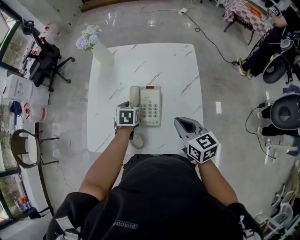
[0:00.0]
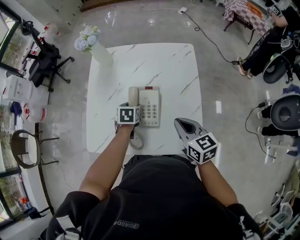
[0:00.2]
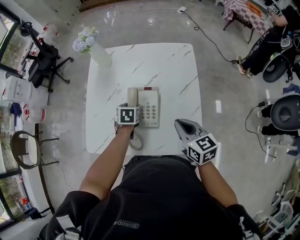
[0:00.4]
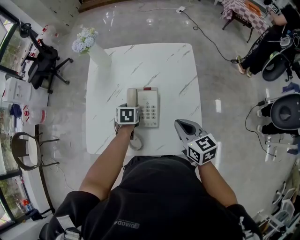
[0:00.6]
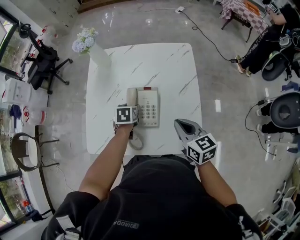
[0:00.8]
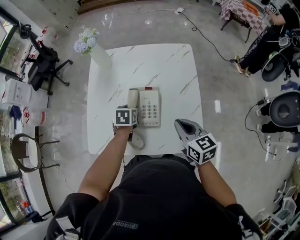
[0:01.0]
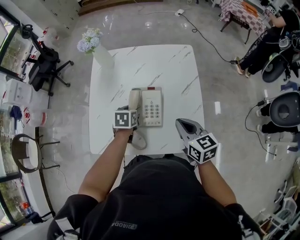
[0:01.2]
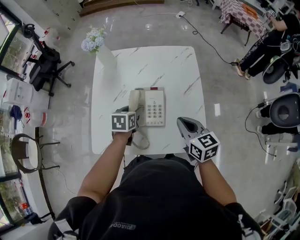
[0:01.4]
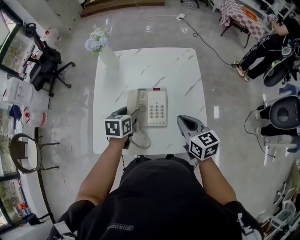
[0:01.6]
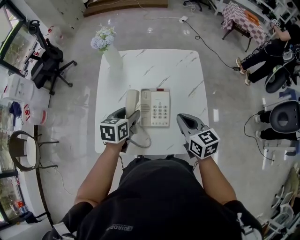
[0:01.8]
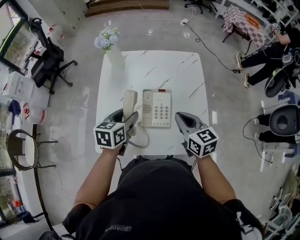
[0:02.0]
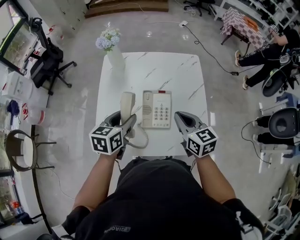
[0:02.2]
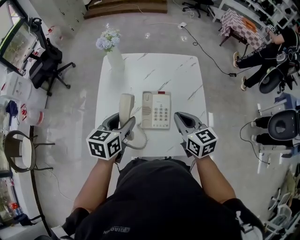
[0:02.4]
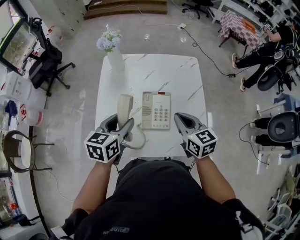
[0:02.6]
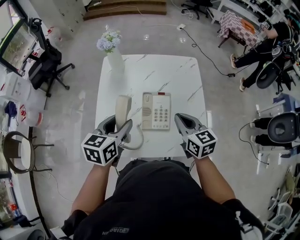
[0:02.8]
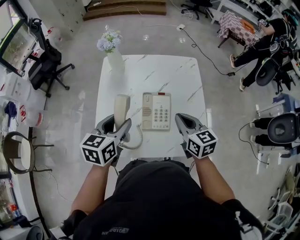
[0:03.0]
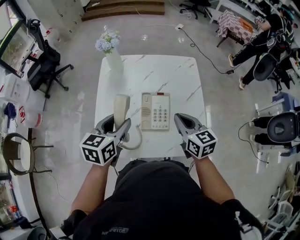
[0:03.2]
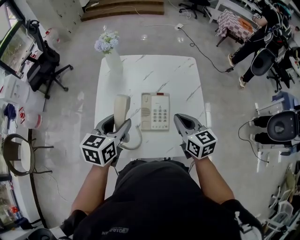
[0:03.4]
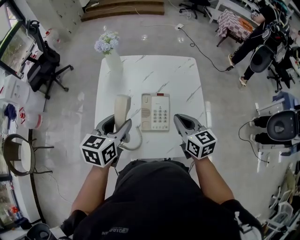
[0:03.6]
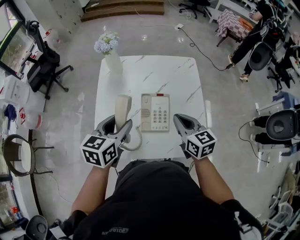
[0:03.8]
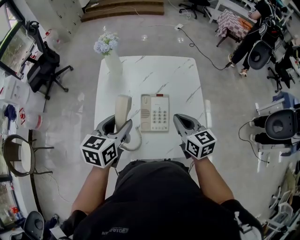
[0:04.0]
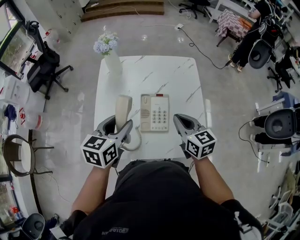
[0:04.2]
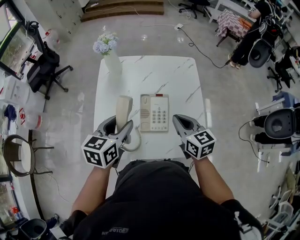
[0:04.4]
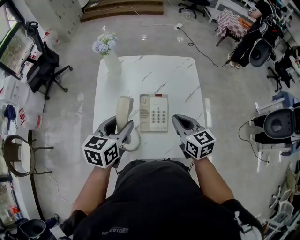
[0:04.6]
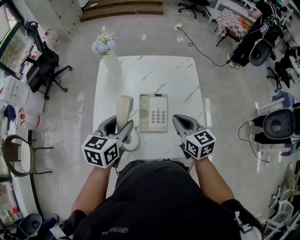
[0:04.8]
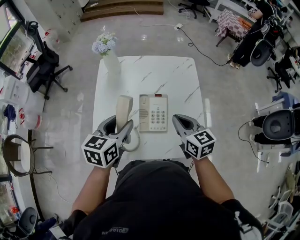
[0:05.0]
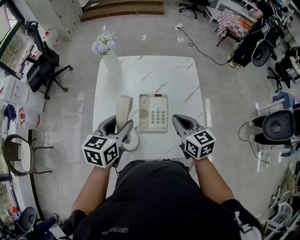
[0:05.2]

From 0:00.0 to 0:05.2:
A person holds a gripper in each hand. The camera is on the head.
From 0:00.0 to 0:01.8: The right gripper ends up some 5 cm from where it was, while the left gripper is displaced upward and to the left by about 15 cm, and turns by some 20 degrees.
From 0:01.8 to 0:03.4: The left gripper travels upward by about 10 cm.
From 0:03.4 to 0:05.2: The grippers move only a little.

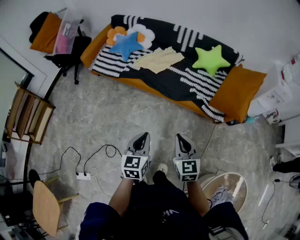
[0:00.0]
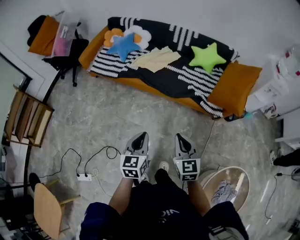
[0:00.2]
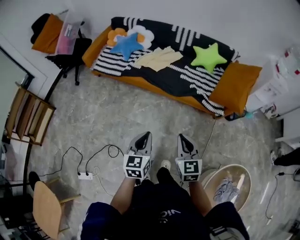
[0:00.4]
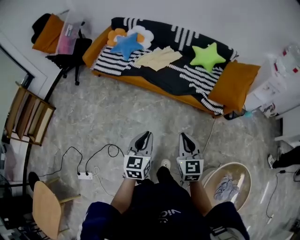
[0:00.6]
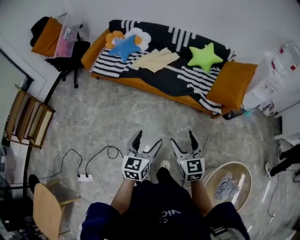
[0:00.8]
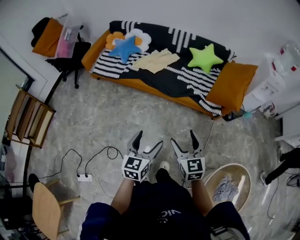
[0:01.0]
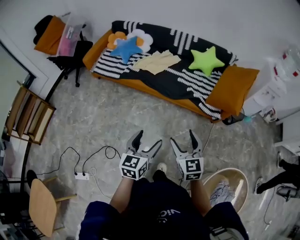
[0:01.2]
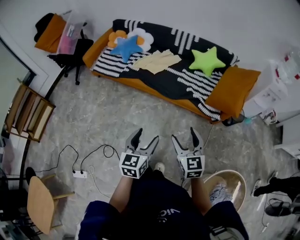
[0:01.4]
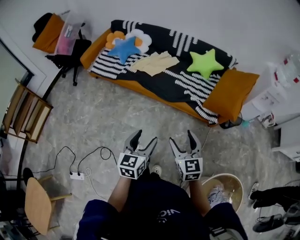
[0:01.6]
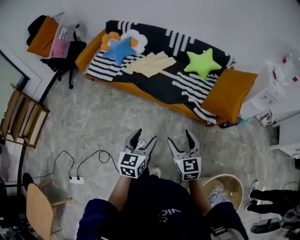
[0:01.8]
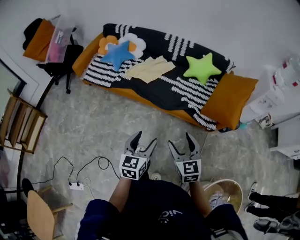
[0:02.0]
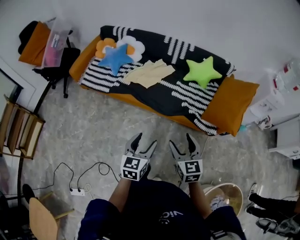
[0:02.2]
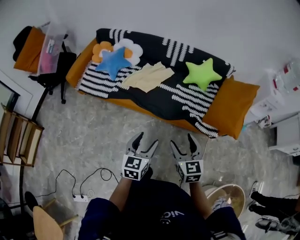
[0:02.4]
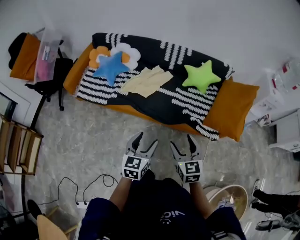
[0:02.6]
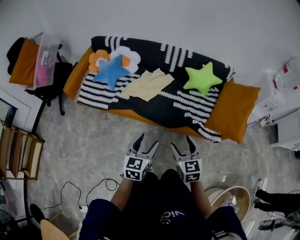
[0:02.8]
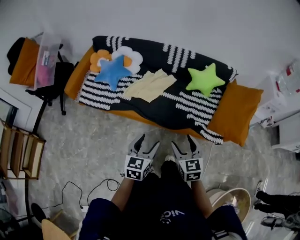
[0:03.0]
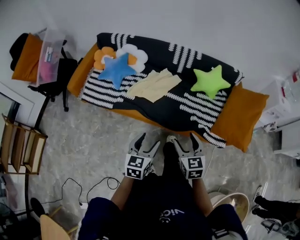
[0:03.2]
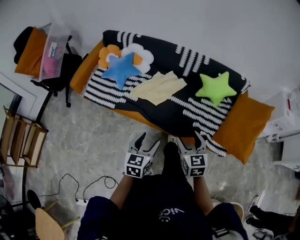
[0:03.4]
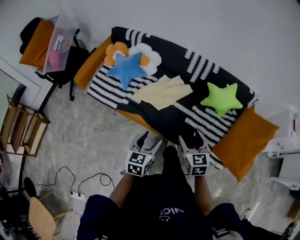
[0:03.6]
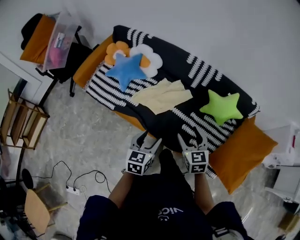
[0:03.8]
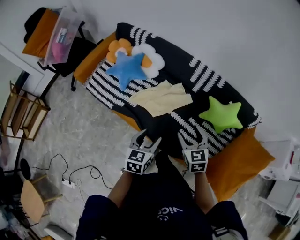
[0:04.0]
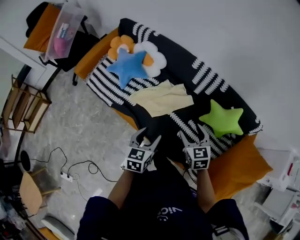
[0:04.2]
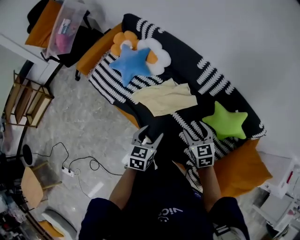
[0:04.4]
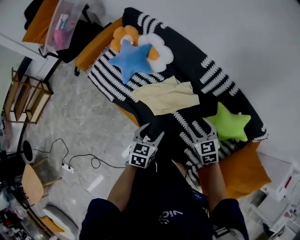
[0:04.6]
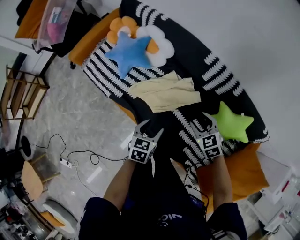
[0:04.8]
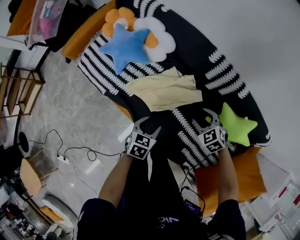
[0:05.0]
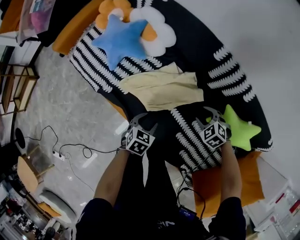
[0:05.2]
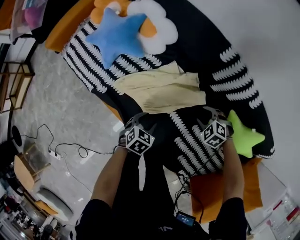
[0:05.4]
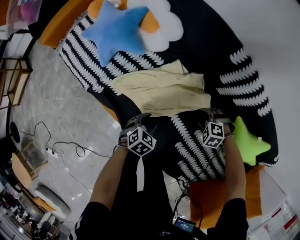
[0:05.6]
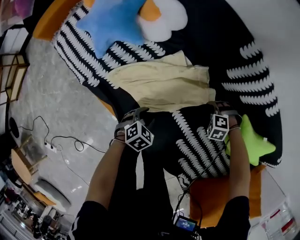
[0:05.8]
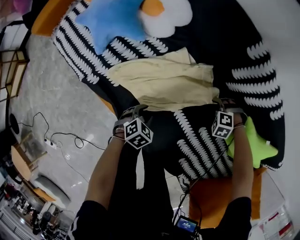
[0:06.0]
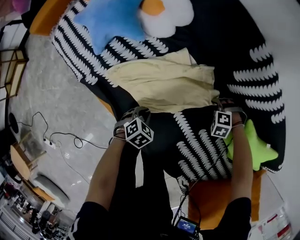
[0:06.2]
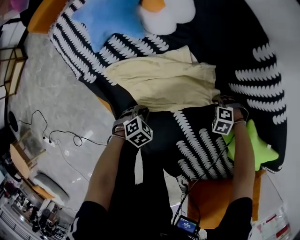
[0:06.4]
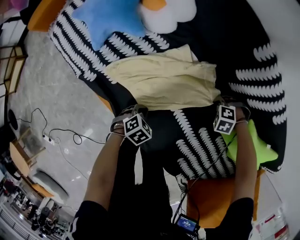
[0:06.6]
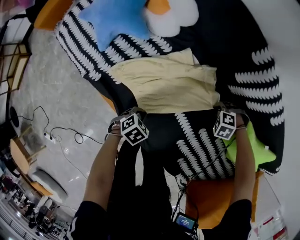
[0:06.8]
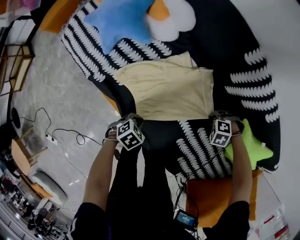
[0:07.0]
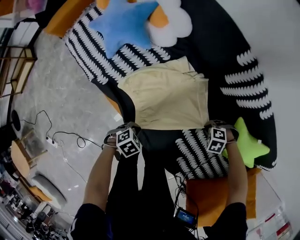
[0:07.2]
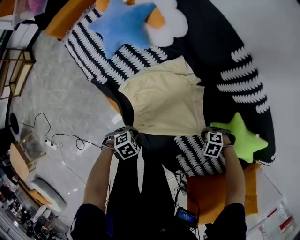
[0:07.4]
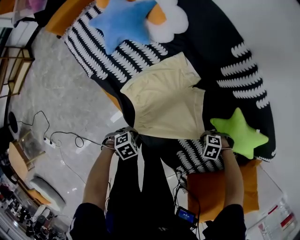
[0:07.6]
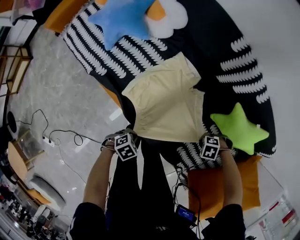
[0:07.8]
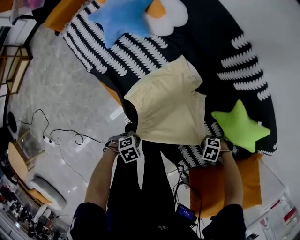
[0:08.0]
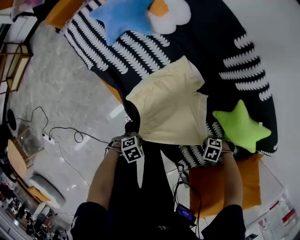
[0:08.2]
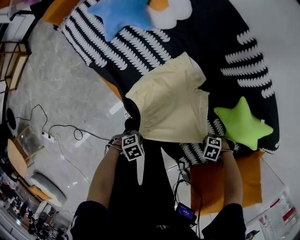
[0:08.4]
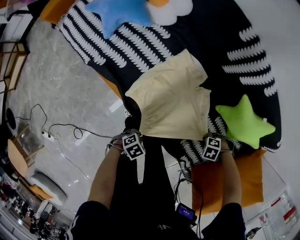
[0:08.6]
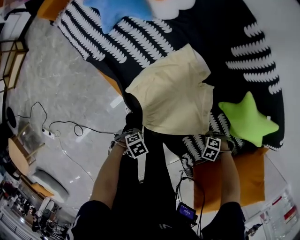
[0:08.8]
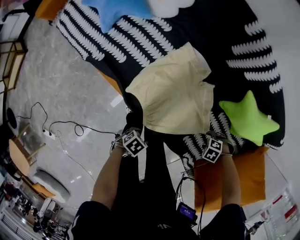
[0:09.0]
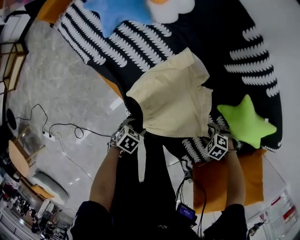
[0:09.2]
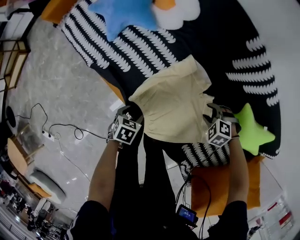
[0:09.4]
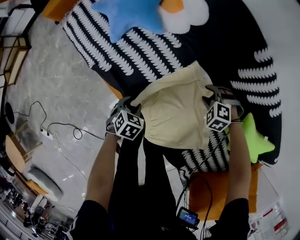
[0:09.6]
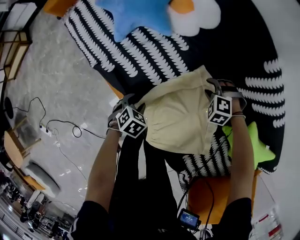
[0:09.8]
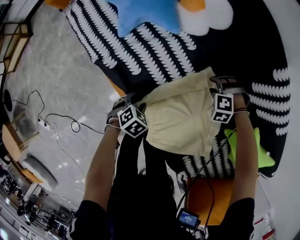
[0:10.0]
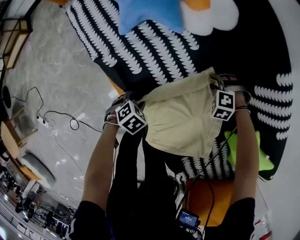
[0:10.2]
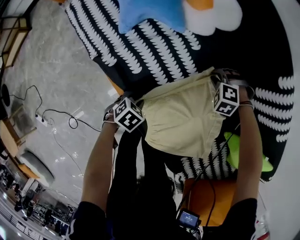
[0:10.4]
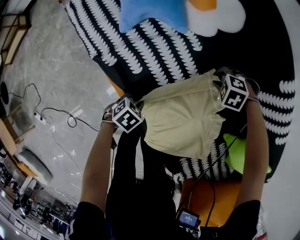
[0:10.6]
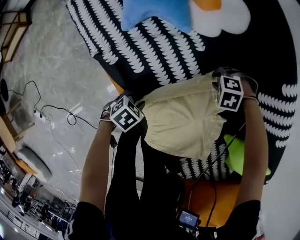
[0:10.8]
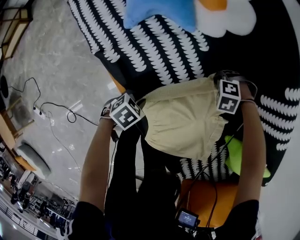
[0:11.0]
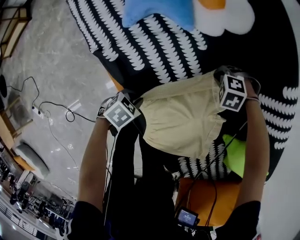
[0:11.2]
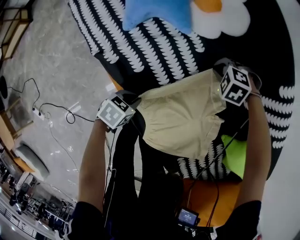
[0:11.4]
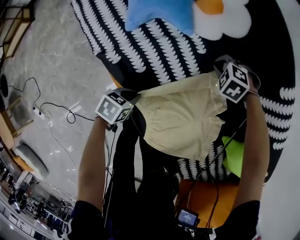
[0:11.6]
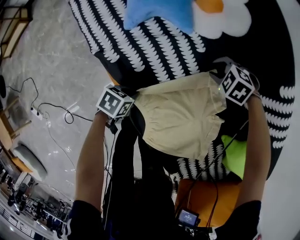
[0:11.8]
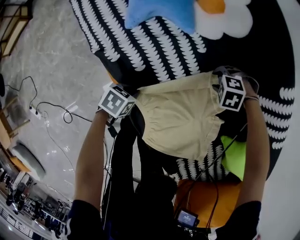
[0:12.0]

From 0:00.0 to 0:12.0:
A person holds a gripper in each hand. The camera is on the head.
From 0:00.0 to 0:01.6: The right gripper opens up. The left gripper moves approximately 5 cm, and opens its fingers.
From 0:01.6 to 0:03.0: The grippers both shift forward by some 25 cm.
From 0:03.0 to 0:04.4: The left gripper moves approximately 30 cm, and swivels some 30 degrees. The right gripper shifts by roughly 40 cm, and rotates about 30 degrees.
From 0:04.4 to 0:06.0: Both grippers move downward, approximately 40 cm. The right gripper angles its fingers downward, by about 50 degrees; the left gripper tips its fingers downward by some 30 degrees.
From 0:06.0 to 0:07.6: The left gripper ends up about 15 cm from where it was, and closes its fingers; the right gripper shifts by about 20 cm, swivels roughly 30 degrees, and closes its fingers.
From 0:07.6 to 0:09.0: The two grippers go some 10 cm forward. The right gripper opens up; the left gripper turns by roughly 20 degrees, and opens up.
From 0:09.0 to 0:10.4: The right gripper changes place by some 50 cm, rotates approximately 40 degrees, and closes its fingers, while the left gripper shifts by roughly 30 cm, turns by roughly 20 degrees, and closes its fingers.
From 0:10.4 to 0:12.0: The right gripper reaches about 5 cm downward, then returns, while the left gripper moves roughly 5 cm, and rotates about 20 degrees.

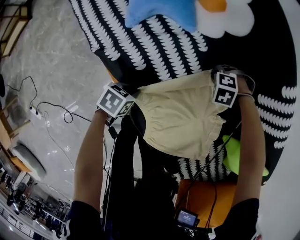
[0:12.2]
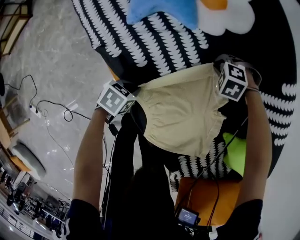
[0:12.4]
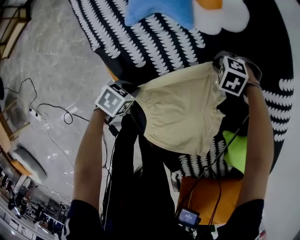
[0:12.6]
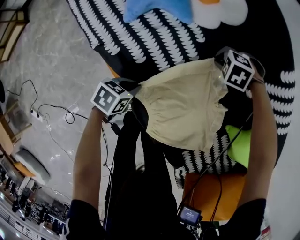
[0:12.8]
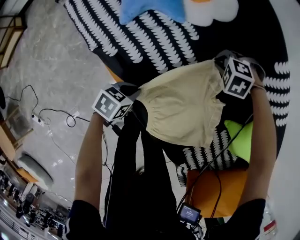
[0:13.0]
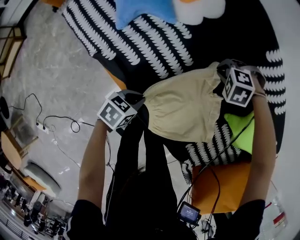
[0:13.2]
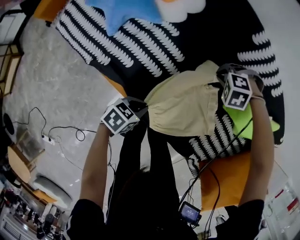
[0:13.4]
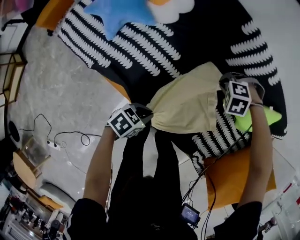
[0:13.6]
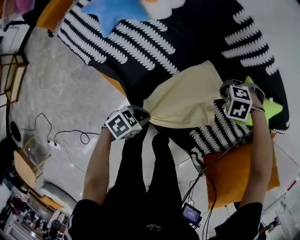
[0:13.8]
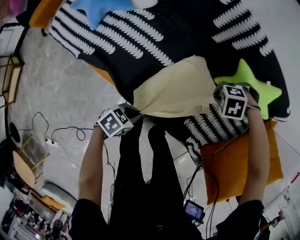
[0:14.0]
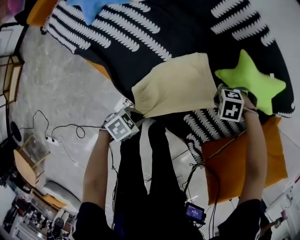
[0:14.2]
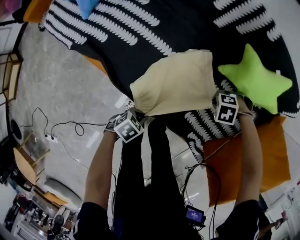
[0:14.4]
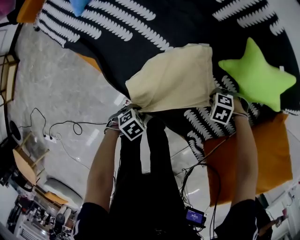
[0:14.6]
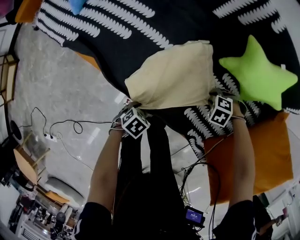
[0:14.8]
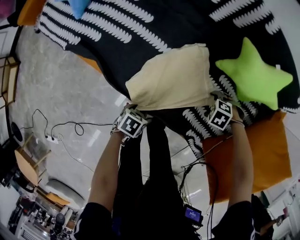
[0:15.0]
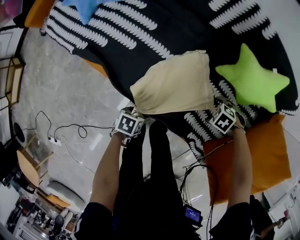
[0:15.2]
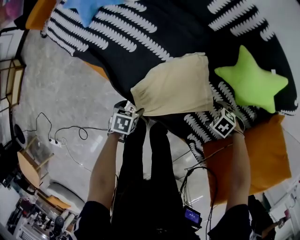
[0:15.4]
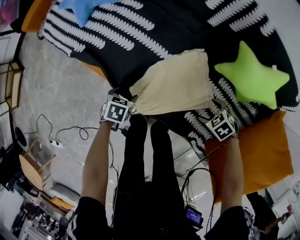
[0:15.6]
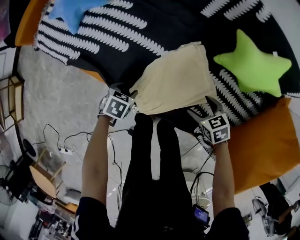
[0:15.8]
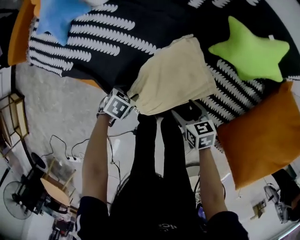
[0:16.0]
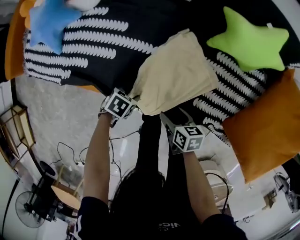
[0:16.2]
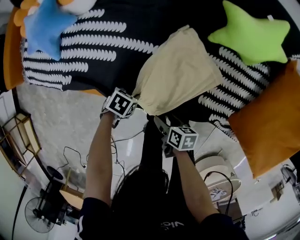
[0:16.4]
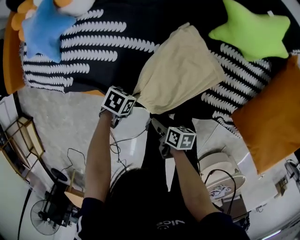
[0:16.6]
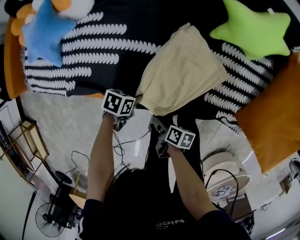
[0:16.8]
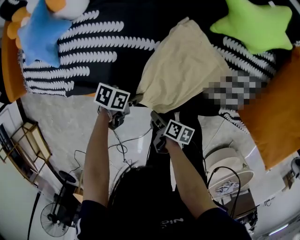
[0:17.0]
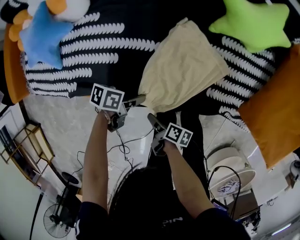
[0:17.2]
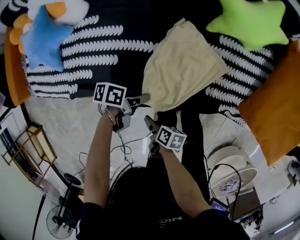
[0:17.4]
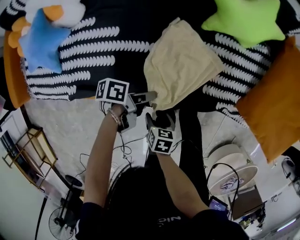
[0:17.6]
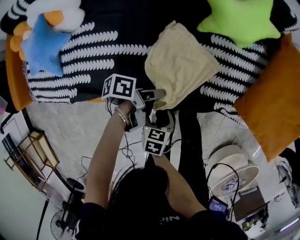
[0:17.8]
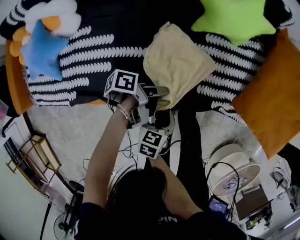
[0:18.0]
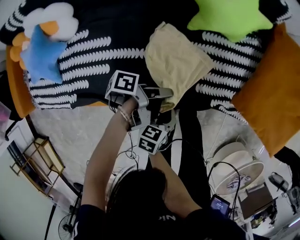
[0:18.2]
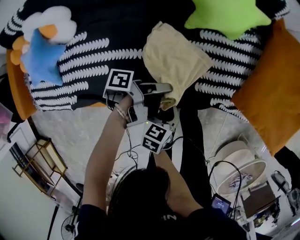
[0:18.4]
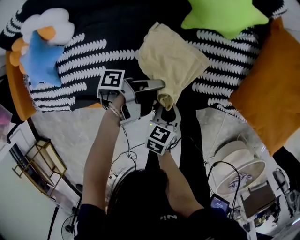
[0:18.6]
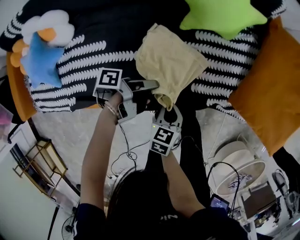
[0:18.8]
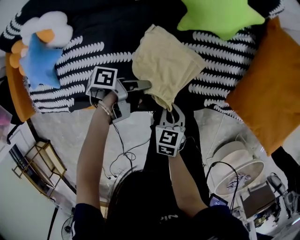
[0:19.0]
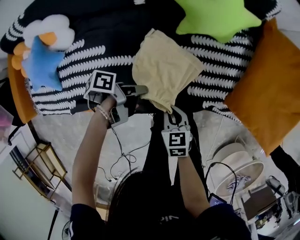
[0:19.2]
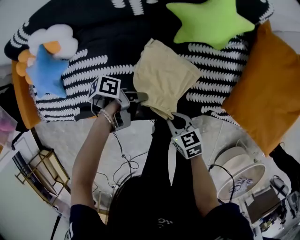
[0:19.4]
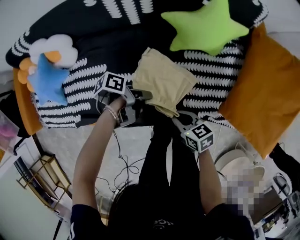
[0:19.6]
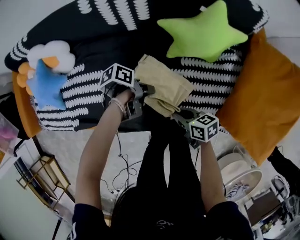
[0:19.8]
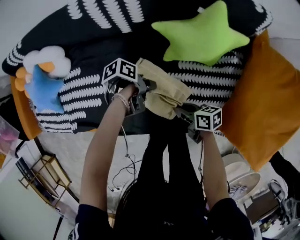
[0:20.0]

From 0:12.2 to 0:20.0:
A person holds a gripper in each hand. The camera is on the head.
From 0:12.2 to 0:13.8: The right gripper ends up about 30 cm from where it was, and swivels some 20 degrees. The left gripper changes place by some 25 cm, and changes its angle by some 40 degrees.
From 0:13.8 to 0:15.4: The right gripper changes place by about 25 cm, changes its angle by about 40 degrees, and opens up; the left gripper moves downward, approximately 10 cm, swivels approximately 40 degrees, and opens its fingers.
From 0:15.4 to 0:16.8: The right gripper moves about 35 cm, rolls clockwise, seen from behind, by some 110 degrees, and closes its fingers. The left gripper moves roughly 10 cm, swivels approximately 40 degrees, and closes its fingers.
From 0:16.8 to 0:18.4: The right gripper shifts by approximately 15 cm, turns by some 50 degrees, and opens, then closes once more. Meanwhile the left gripper changes place by approximately 25 cm, and angles its fingers upward, by some 40 degrees.
From 0:18.4 to 0:20.0: The right gripper ends up approximately 15 cm from where it was, rotates some 60 degrees, and closes up. Meanwhile the left gripper moves roughly 15 cm, and rotates approximately 40 degrees.
